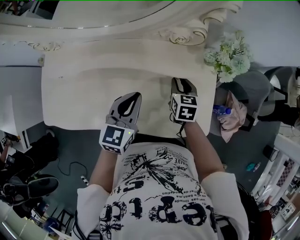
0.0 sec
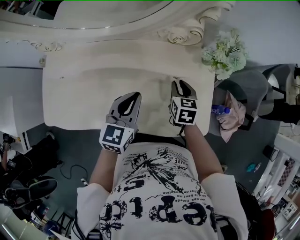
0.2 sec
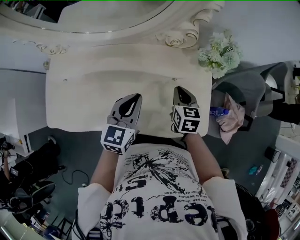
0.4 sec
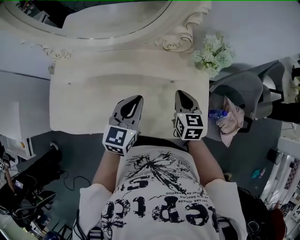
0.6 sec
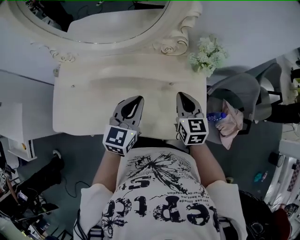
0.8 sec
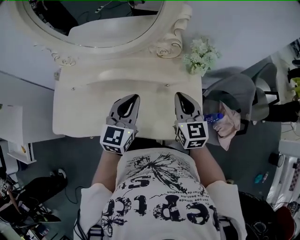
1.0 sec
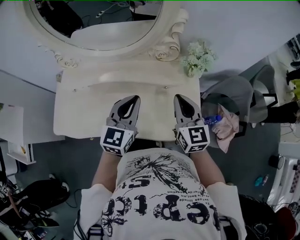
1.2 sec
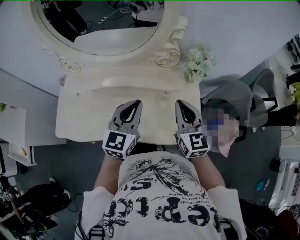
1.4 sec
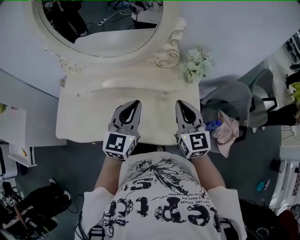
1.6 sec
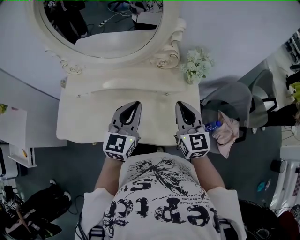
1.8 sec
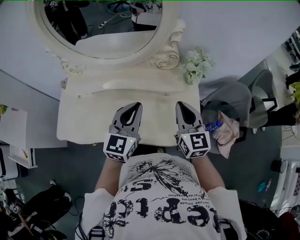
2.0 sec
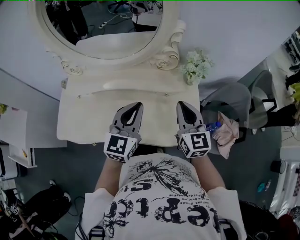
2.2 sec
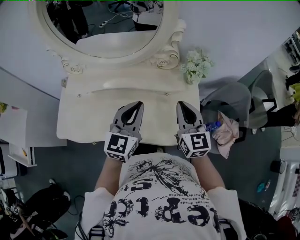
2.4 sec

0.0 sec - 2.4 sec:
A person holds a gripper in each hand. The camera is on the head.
0.0 sec - 1.2 sec: The right gripper travels upward and backward by some 25 cm, tilts its fingers approximately 30 degrees upward, and closes; the left gripper travels upward by about 15 cm.
1.2 sec - 2.4 sec: There are only small adjustments of the grippers.

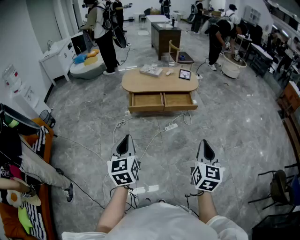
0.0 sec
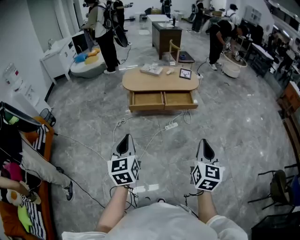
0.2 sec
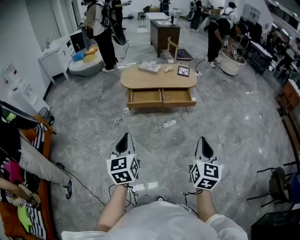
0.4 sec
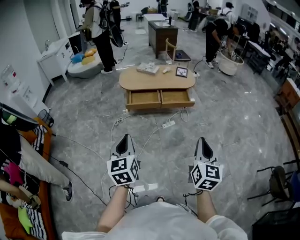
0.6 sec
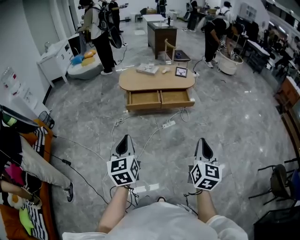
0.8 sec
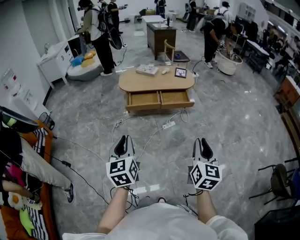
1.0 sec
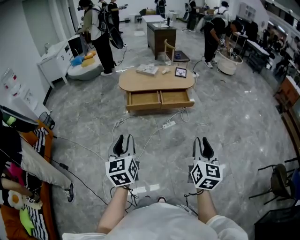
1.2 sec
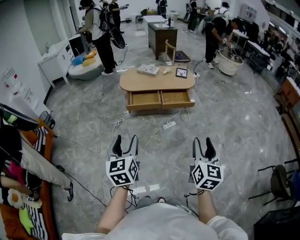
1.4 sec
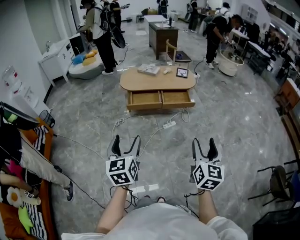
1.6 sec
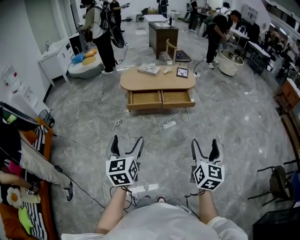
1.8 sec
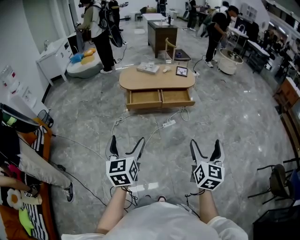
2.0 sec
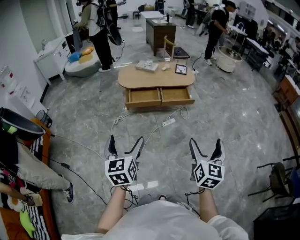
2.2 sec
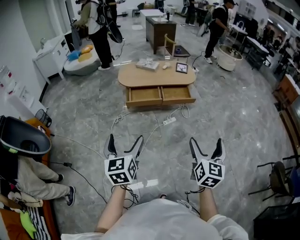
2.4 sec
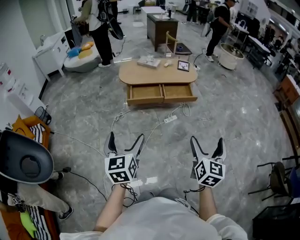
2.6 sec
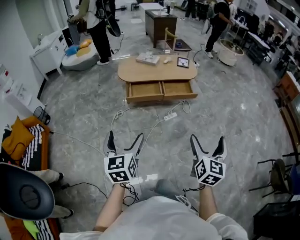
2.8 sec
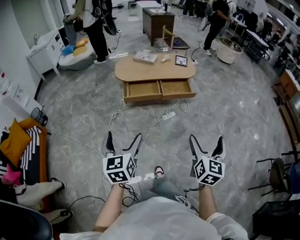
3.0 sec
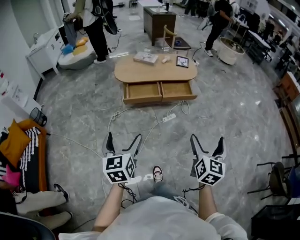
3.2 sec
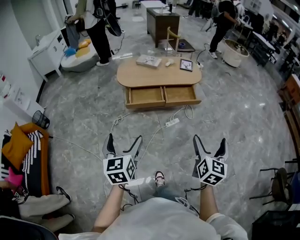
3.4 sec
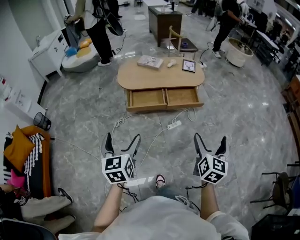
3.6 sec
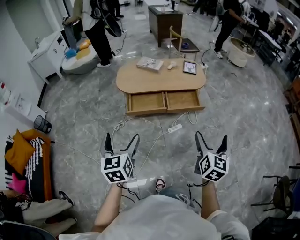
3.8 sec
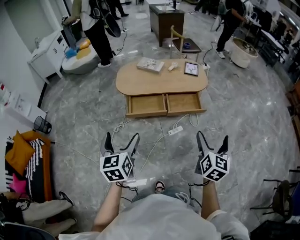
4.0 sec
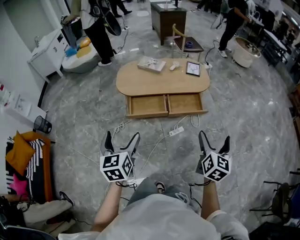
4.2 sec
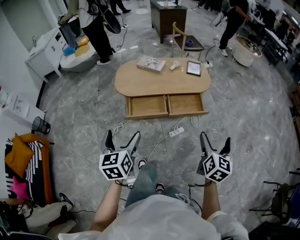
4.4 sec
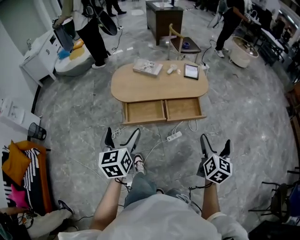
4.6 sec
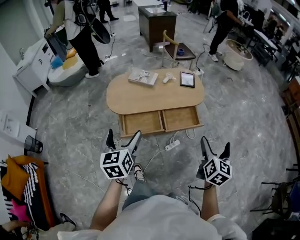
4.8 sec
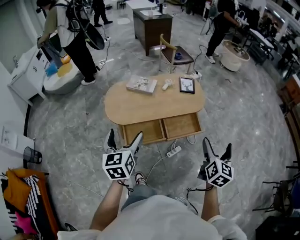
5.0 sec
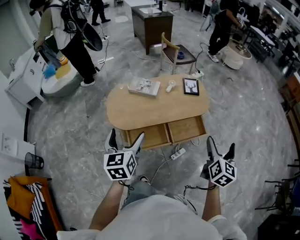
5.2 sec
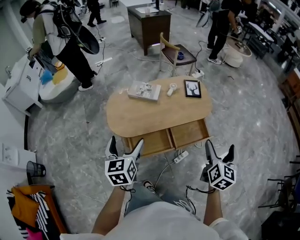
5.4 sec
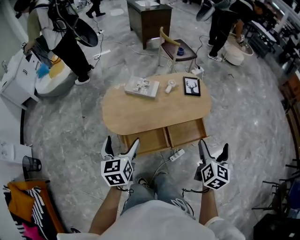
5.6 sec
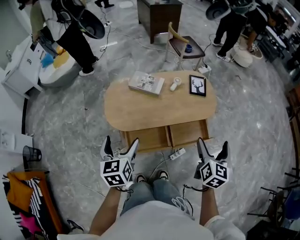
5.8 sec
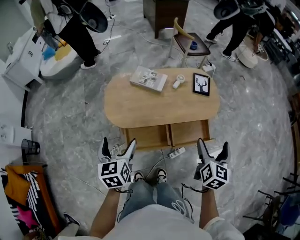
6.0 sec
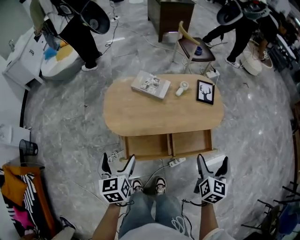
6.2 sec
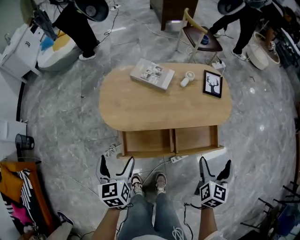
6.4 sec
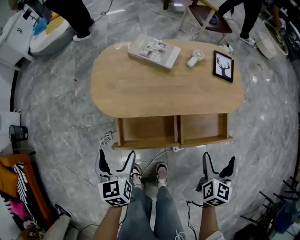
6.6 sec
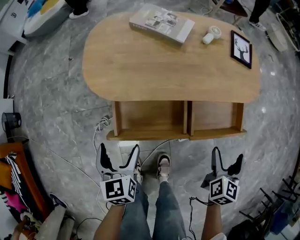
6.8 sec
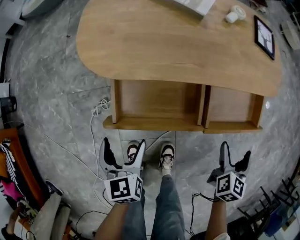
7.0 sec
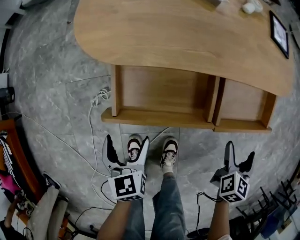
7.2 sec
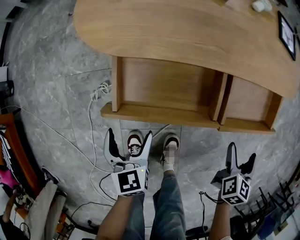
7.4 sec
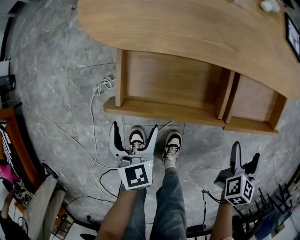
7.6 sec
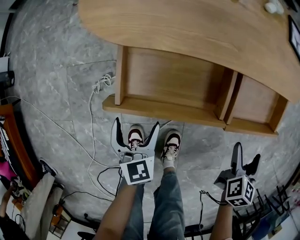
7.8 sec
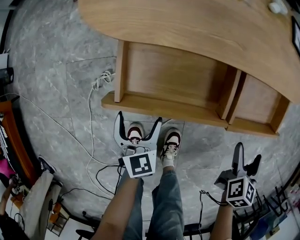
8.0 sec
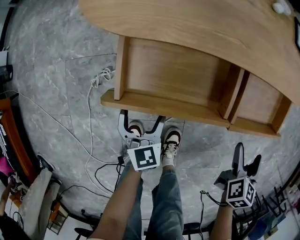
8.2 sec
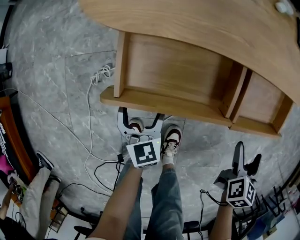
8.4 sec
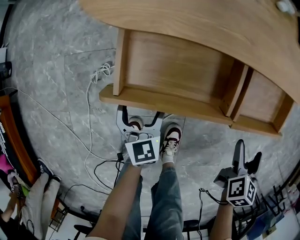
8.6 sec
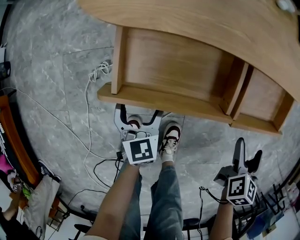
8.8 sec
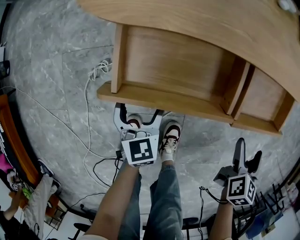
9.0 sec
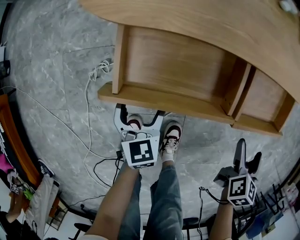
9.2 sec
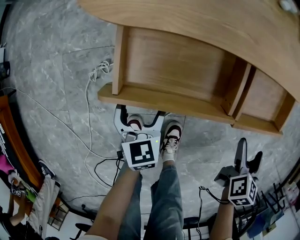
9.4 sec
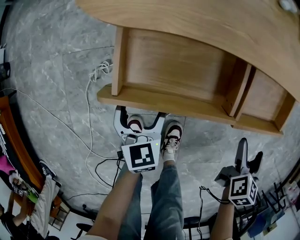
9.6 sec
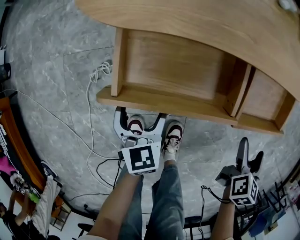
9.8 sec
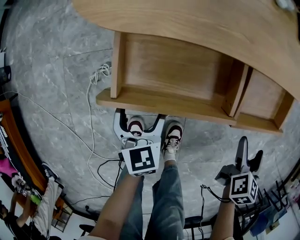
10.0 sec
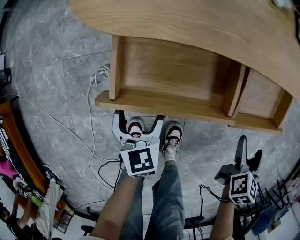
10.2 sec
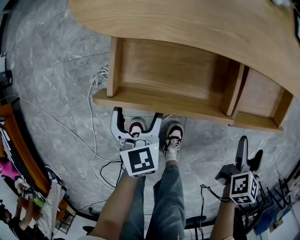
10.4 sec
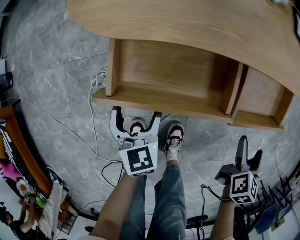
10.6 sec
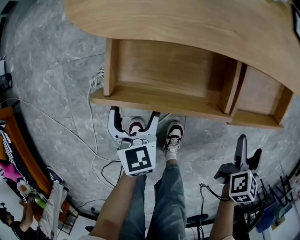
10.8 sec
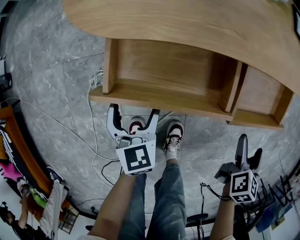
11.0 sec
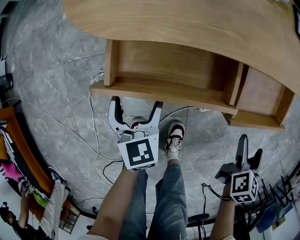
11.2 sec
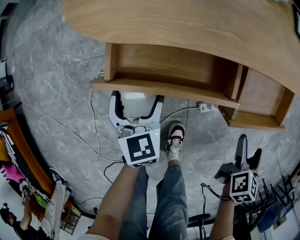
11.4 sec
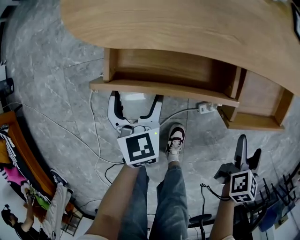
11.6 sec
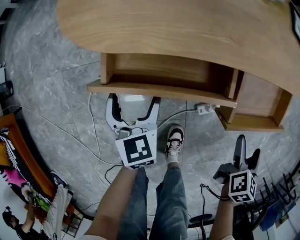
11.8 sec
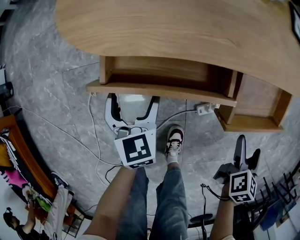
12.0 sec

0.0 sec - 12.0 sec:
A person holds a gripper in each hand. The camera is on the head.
0.0 sec - 1.6 sec: The left gripper opens. Meanwhile the right gripper opens its fingers.
1.6 sec - 3.0 sec: The right gripper heads forward, covering roughly 5 cm, and opens its fingers. The left gripper travels forward and to the left by approximately 10 cm.
3.0 sec - 4.4 sec: The grippers both shift forward by about 30 cm.
4.4 sec - 6.0 sec: The grippers both shift forward and to the left by some 35 cm.
6.0 sec - 7.6 sec: Both grippers move downward, about 50 cm. The right gripper swivels roughly 20 degrees.
7.6 sec - 9.0 sec: The left gripper heads downward, covering roughly 5 cm.
9.0 sec - 10.4 sec: The grippers make only small movements.
10.4 sec - 12.0 sec: The left gripper travels forward by approximately 5 cm.

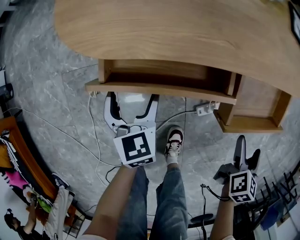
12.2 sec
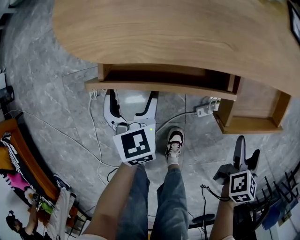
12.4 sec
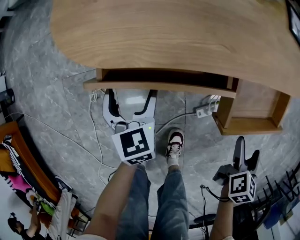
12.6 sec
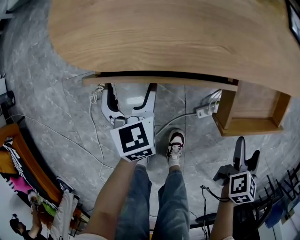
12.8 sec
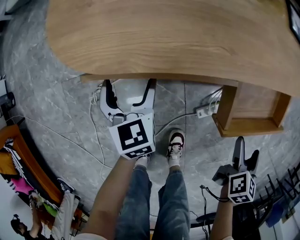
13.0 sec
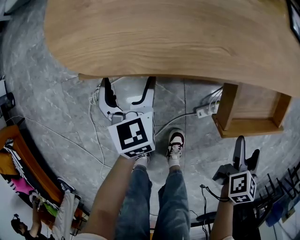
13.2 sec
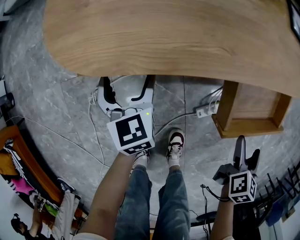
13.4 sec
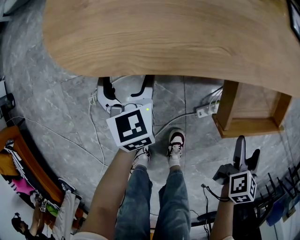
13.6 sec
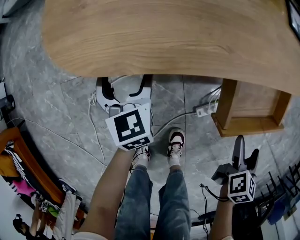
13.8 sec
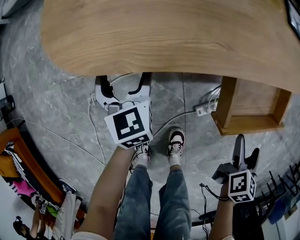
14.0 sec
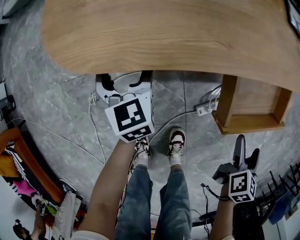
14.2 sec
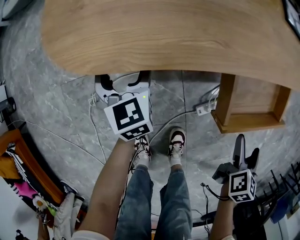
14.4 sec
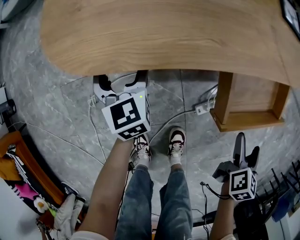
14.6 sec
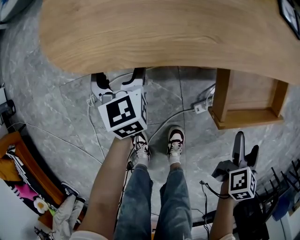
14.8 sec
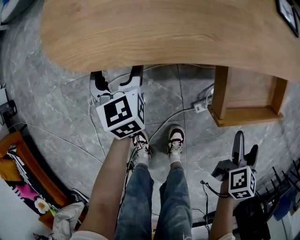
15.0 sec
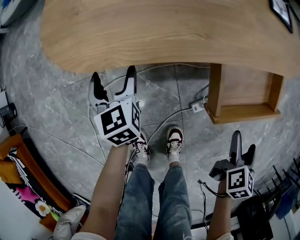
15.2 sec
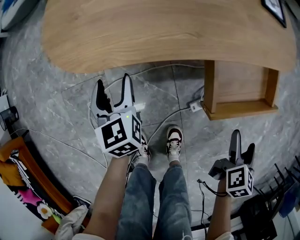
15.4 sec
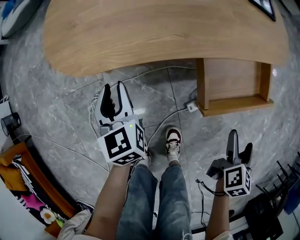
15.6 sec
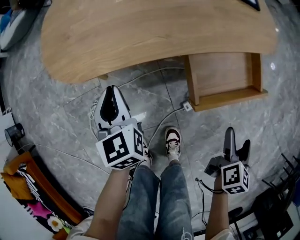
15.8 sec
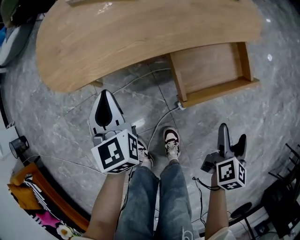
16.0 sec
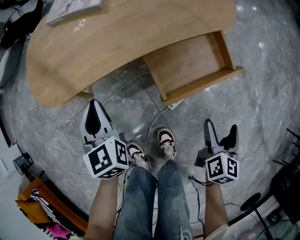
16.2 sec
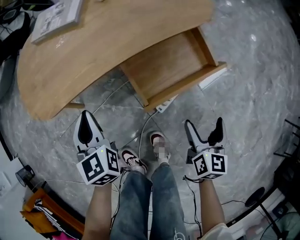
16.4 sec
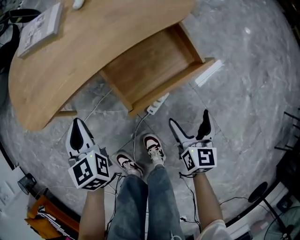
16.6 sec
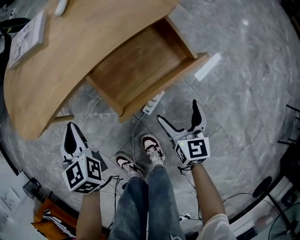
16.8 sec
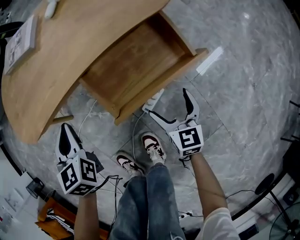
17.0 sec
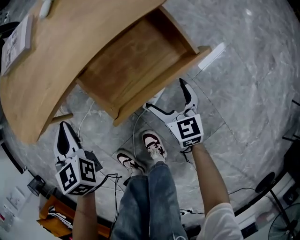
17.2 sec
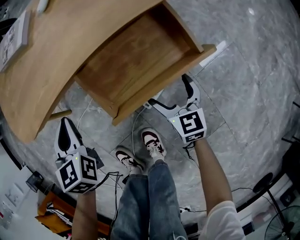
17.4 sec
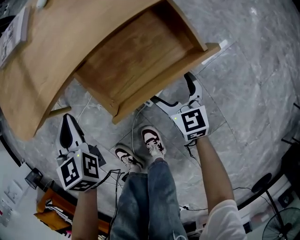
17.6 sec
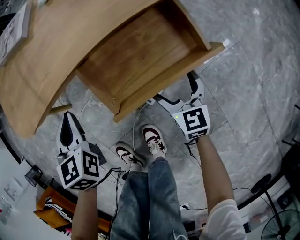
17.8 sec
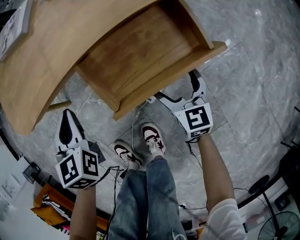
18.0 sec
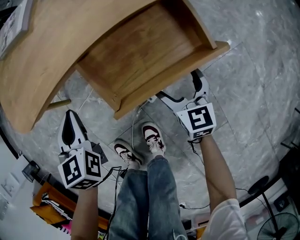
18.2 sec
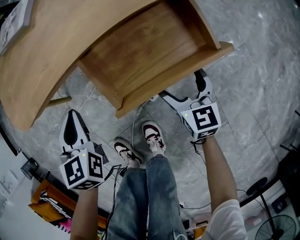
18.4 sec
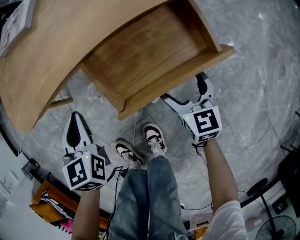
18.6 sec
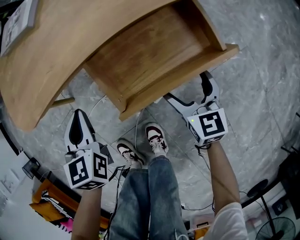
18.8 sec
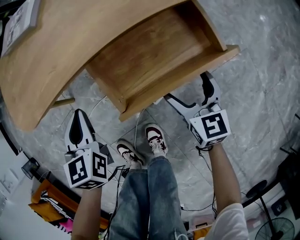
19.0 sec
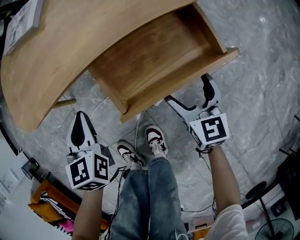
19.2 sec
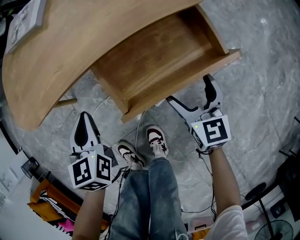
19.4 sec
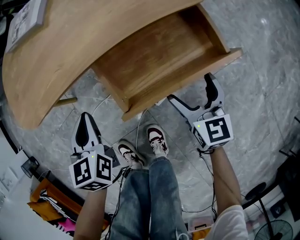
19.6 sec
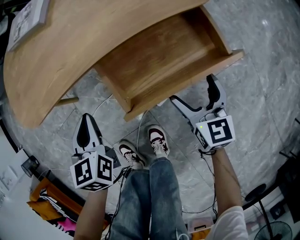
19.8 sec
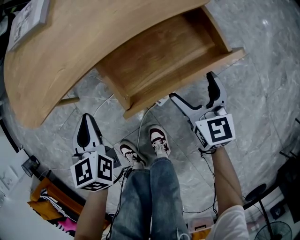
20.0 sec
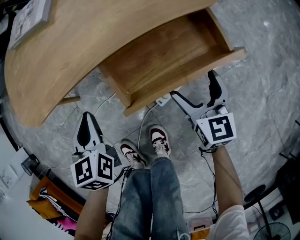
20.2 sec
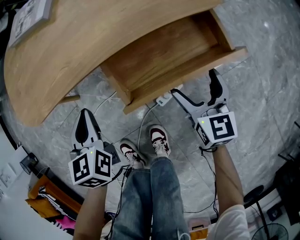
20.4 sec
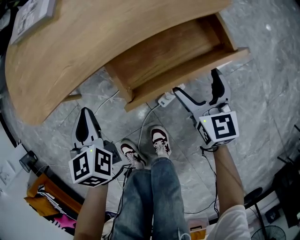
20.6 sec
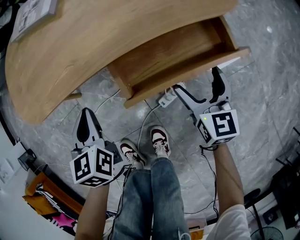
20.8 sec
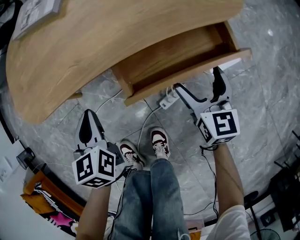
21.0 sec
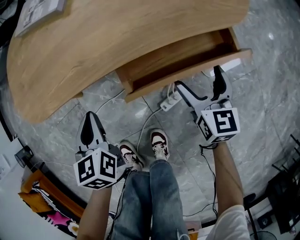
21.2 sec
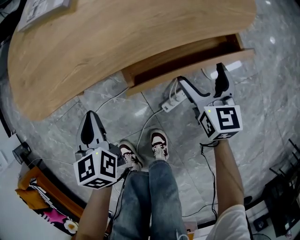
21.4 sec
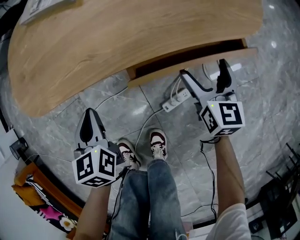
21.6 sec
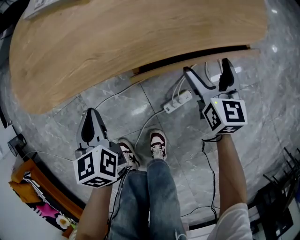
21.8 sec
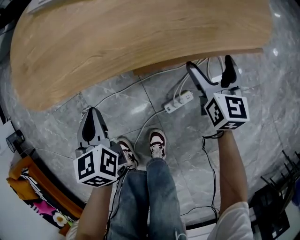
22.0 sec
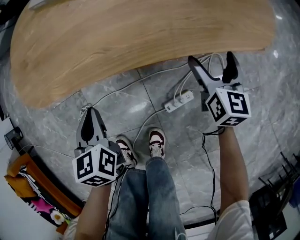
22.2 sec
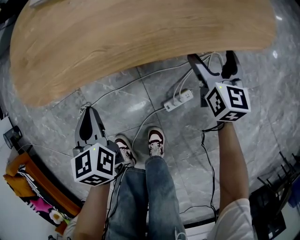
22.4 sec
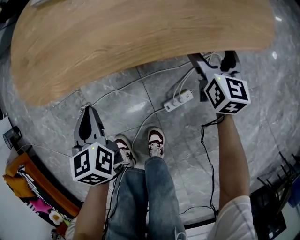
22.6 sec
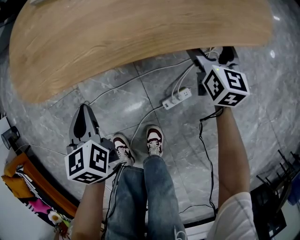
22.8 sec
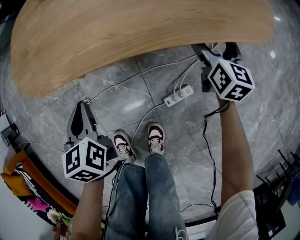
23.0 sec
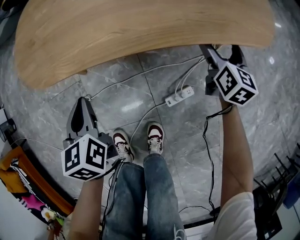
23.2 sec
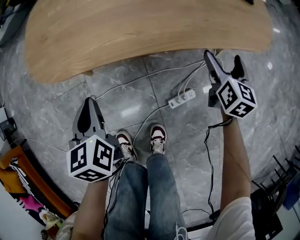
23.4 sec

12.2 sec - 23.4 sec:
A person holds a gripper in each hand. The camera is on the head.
12.2 sec - 13.8 sec: The left gripper moves forward, some 10 cm.
13.8 sec - 15.4 sec: The right gripper changes place by roughly 5 cm, while the left gripper changes place by some 5 cm.
15.4 sec - 17.0 sec: The left gripper is displaced to the right by about 20 cm, swivels about 20 degrees, and closes its fingers. The right gripper goes roughly 10 cm downward, and swivels approximately 30 degrees.
17.0 sec - 18.6 sec: The right gripper shifts by approximately 5 cm.
18.6 sec - 20.2 sec: The right gripper shifts approximately 5 cm upward.
20.2 sec - 21.8 sec: The right gripper travels forward by approximately 10 cm; the left gripper heads to the left, covering about 5 cm.
21.8 sec - 23.4 sec: The left gripper is displaced to the left by roughly 10 cm.
